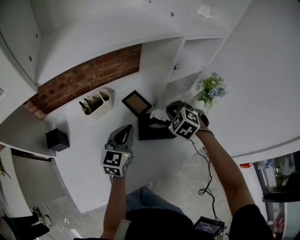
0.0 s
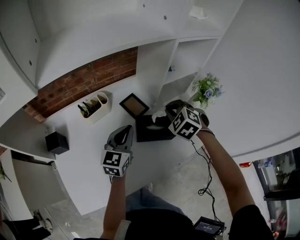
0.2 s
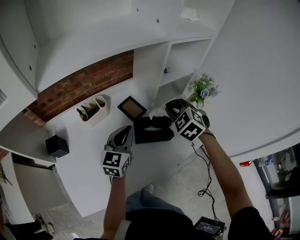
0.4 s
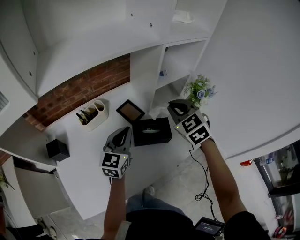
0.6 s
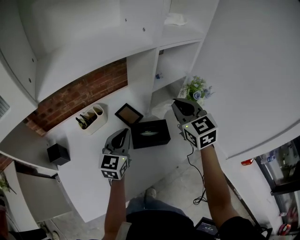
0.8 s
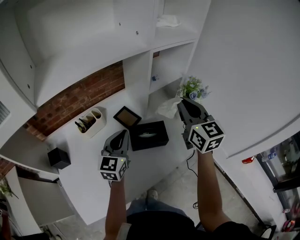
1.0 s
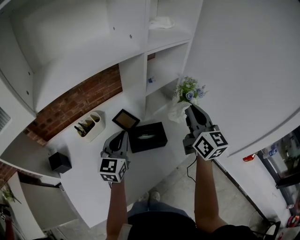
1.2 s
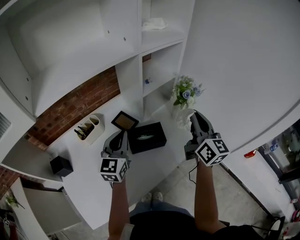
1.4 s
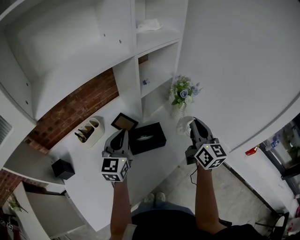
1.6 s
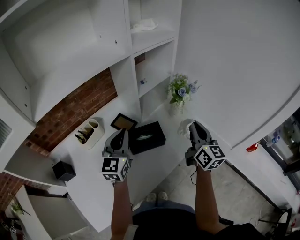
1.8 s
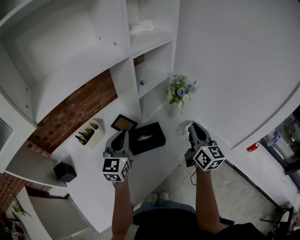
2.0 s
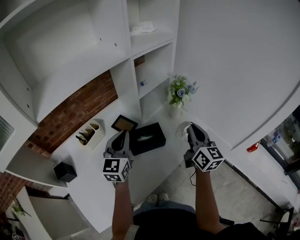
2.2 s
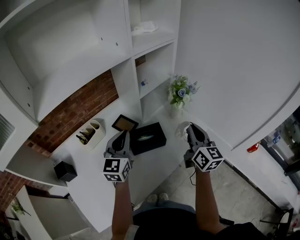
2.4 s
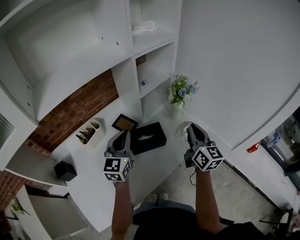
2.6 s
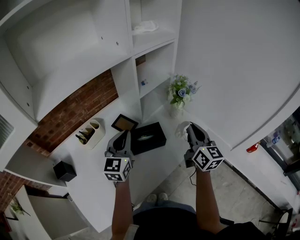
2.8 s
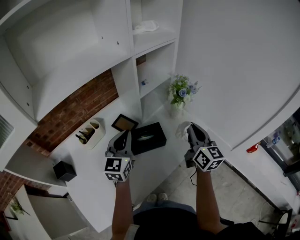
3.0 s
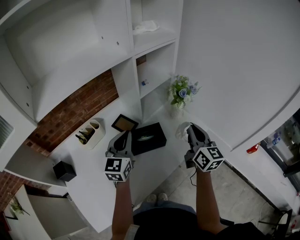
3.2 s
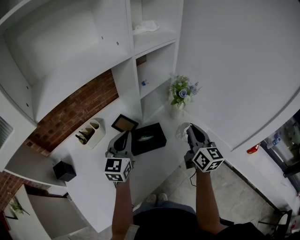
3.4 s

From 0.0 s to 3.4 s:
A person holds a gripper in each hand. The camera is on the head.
From 0.0 s to 1.6 s: The left gripper shifts some 10 cm upward and to the right. Meanwhile the right gripper is displaced to the right, upward and backward by about 25 cm, and points its fingers some 60 degrees further upward.
From 1.6 s to 3.4 s: The grippers make only small movements.

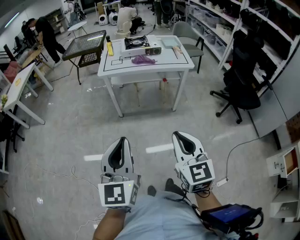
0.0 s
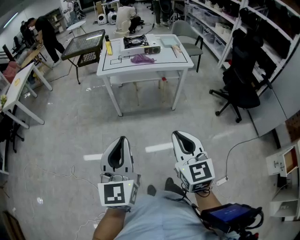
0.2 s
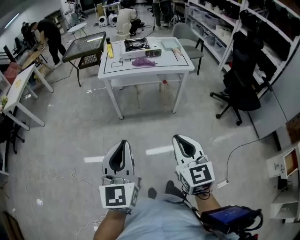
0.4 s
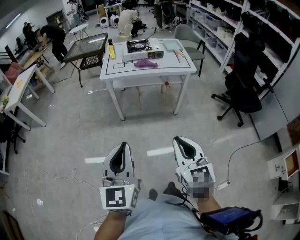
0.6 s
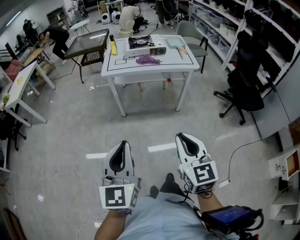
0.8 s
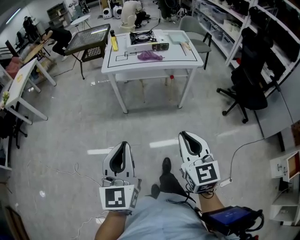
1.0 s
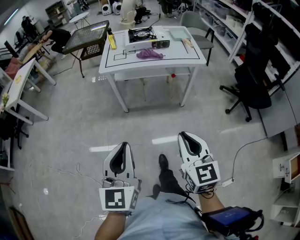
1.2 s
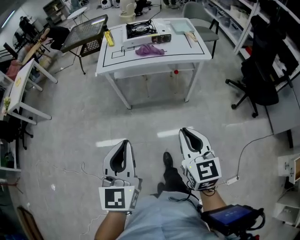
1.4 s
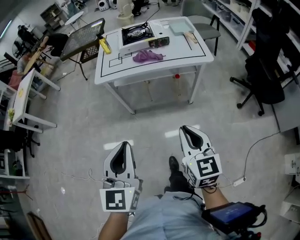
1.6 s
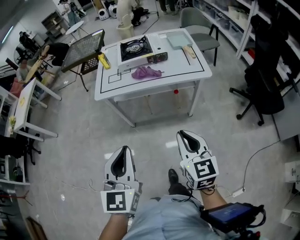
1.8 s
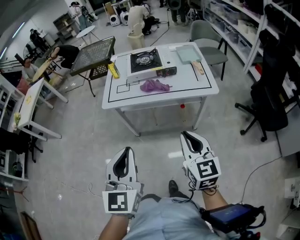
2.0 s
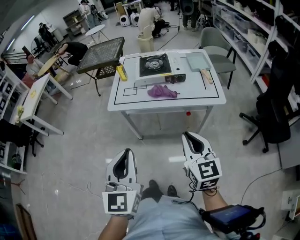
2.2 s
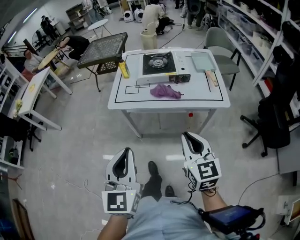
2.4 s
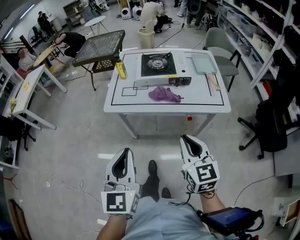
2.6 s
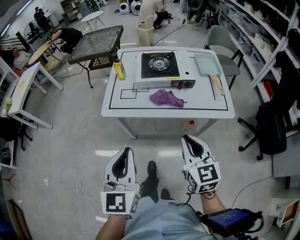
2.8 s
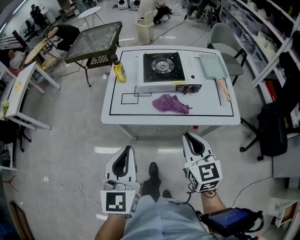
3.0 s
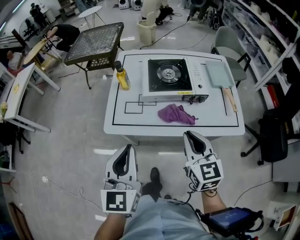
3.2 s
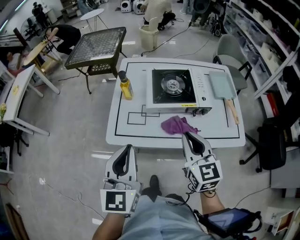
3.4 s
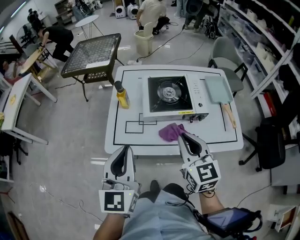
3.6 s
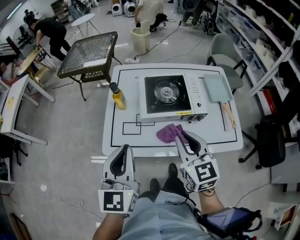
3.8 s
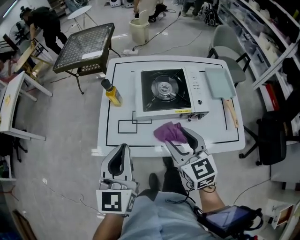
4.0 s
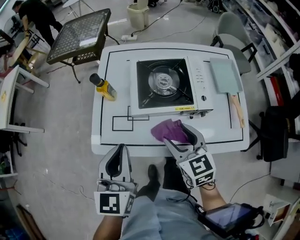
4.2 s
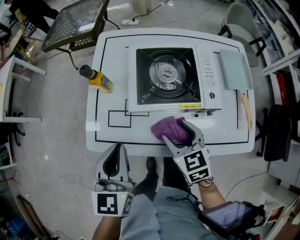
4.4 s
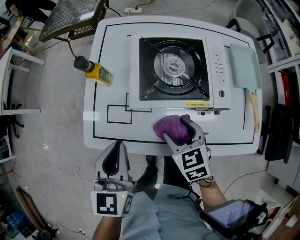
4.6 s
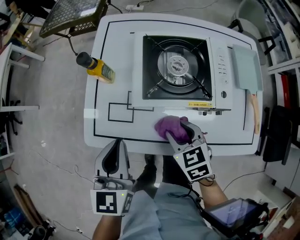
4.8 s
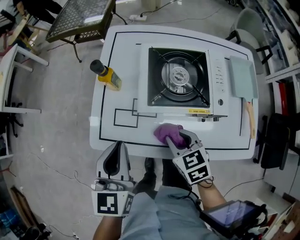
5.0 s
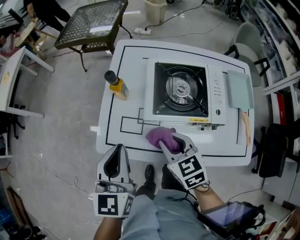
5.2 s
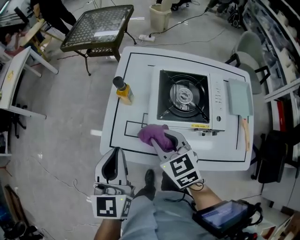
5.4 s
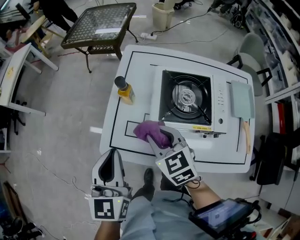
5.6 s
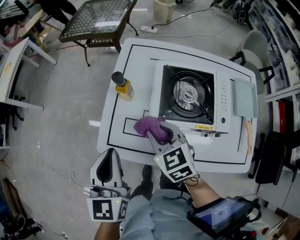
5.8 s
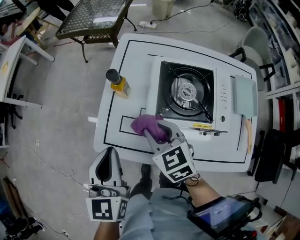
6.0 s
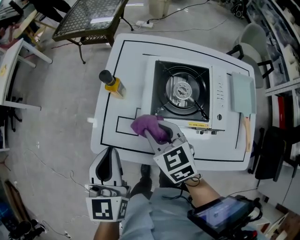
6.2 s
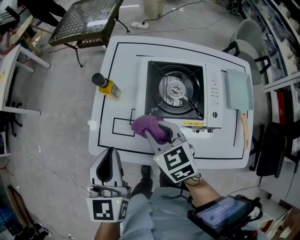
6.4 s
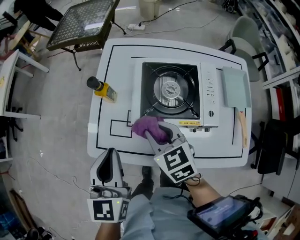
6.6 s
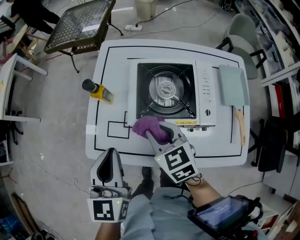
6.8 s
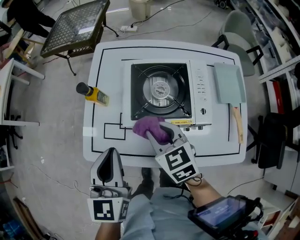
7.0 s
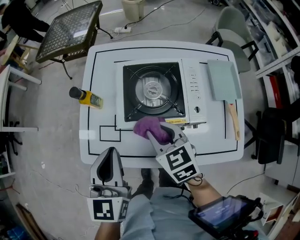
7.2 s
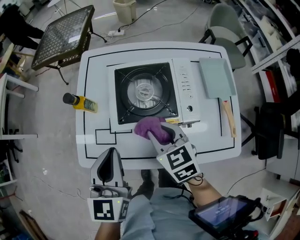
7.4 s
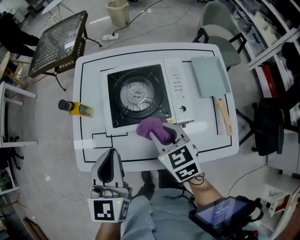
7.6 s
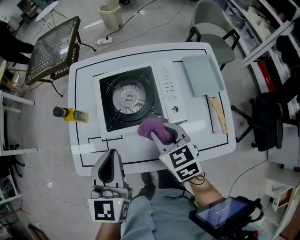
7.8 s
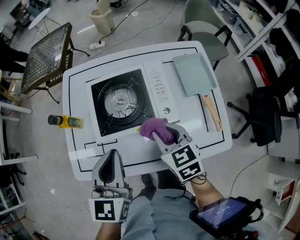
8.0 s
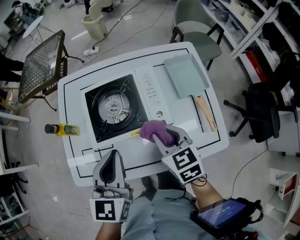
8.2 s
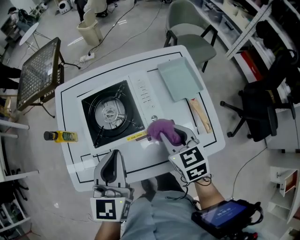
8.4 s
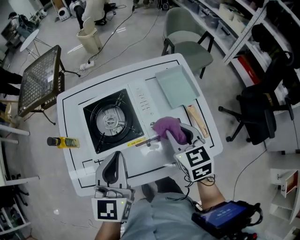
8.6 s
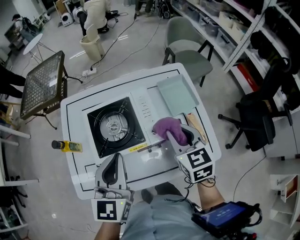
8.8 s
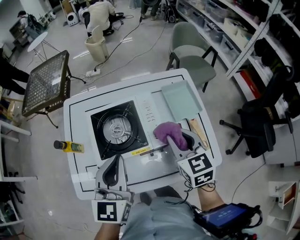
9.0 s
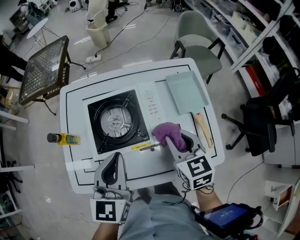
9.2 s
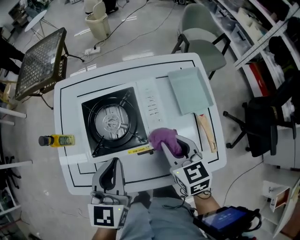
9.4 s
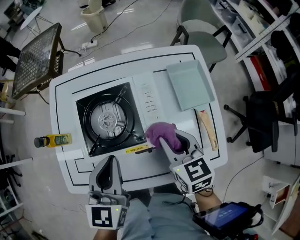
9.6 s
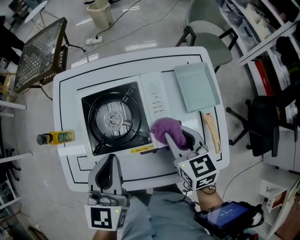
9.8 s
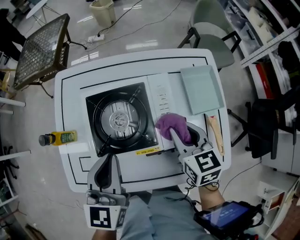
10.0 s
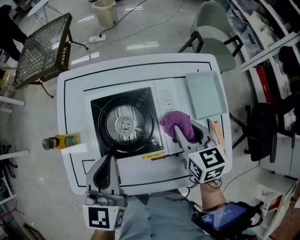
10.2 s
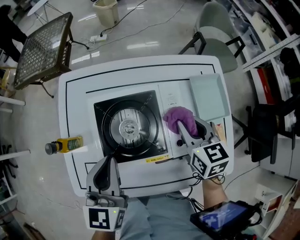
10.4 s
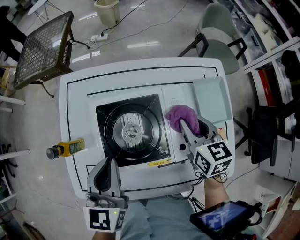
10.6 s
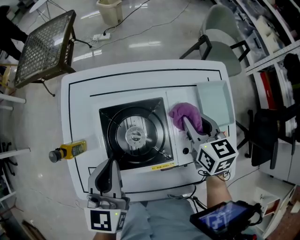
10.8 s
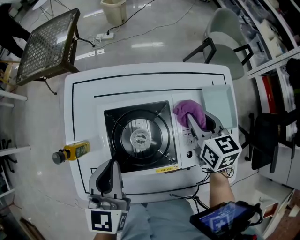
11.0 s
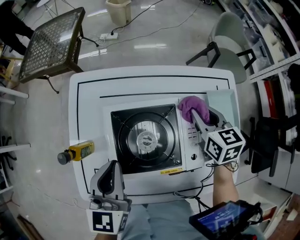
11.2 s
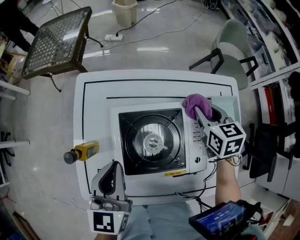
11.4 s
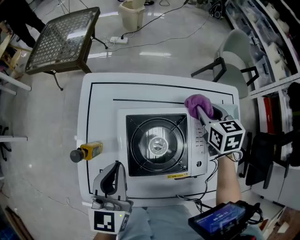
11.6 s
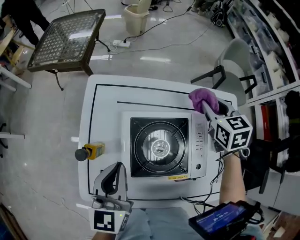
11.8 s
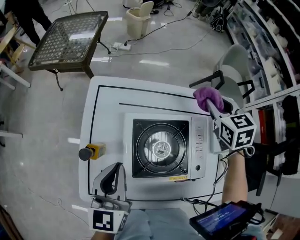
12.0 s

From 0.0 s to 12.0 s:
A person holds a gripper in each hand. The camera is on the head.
From 0.0 s to 1.6 s: Both grippers move forward, about 25 cm.
From 1.6 s to 3.0 s: The two grippers go some 35 cm forward.
From 3.0 s to 4.4 s: The left gripper shifts roughly 25 cm forward, while the right gripper shifts roughly 30 cm forward and downward, rotates about 20 degrees, and opens.
From 4.4 s to 6.0 s: The right gripper moves to the left, forward and upward, roughly 15 cm, and closes up; the left gripper travels to the left by about 5 cm.
From 6.0 s to 7.6 s: Both grippers move to the right, some 15 cm.
From 7.6 s to 9.0 s: The left gripper goes roughly 10 cm to the right and upward, while the right gripper travels to the right and upward by some 20 cm, and changes its angle by some 20 degrees.
From 9.0 s to 10.4 s: The right gripper moves forward and downward, roughly 15 cm. Meanwhile the left gripper shifts about 15 cm forward, to the left and downward.
From 10.4 s to 12.0 s: The right gripper is displaced forward and upward by about 20 cm, and changes its angle by approximately 20 degrees. Meanwhile the left gripper heads to the left, covering roughly 10 cm.

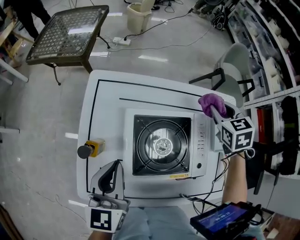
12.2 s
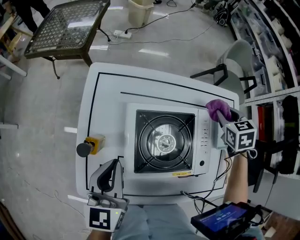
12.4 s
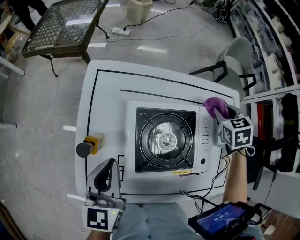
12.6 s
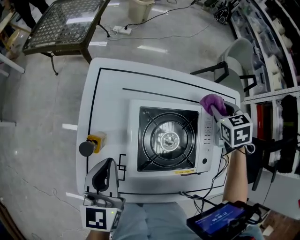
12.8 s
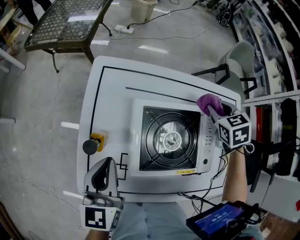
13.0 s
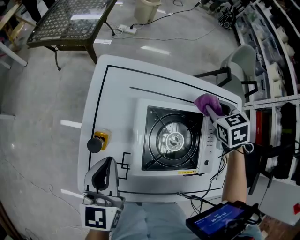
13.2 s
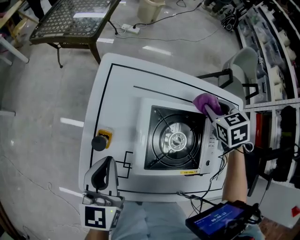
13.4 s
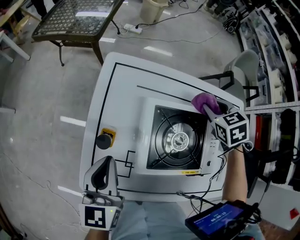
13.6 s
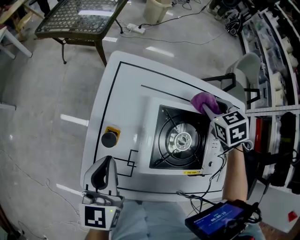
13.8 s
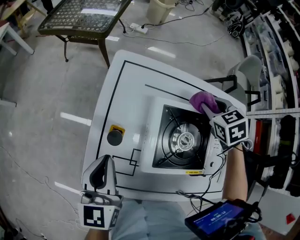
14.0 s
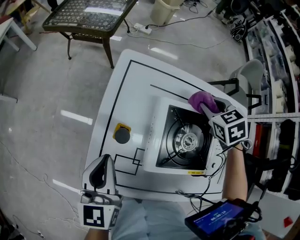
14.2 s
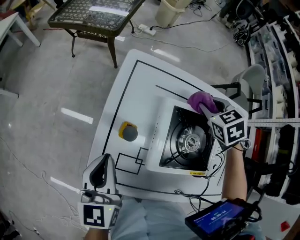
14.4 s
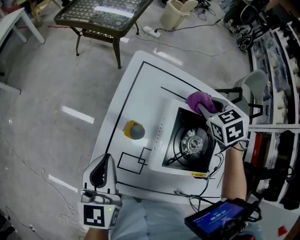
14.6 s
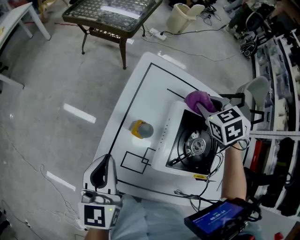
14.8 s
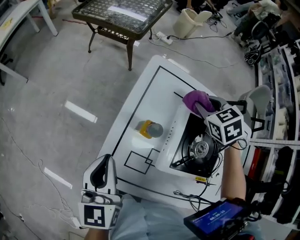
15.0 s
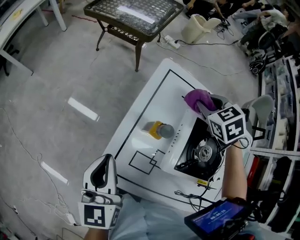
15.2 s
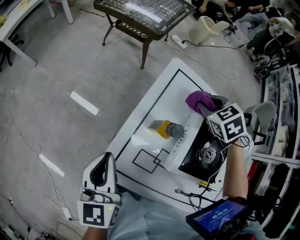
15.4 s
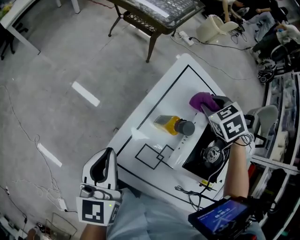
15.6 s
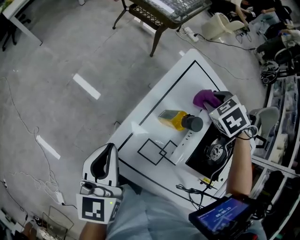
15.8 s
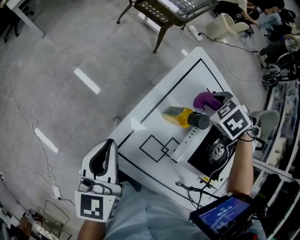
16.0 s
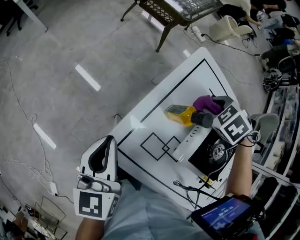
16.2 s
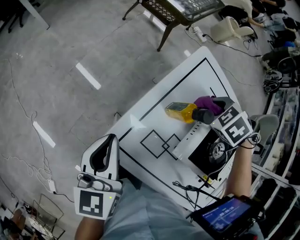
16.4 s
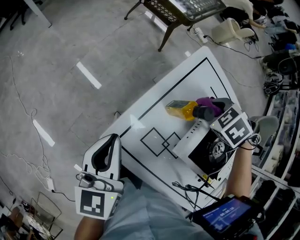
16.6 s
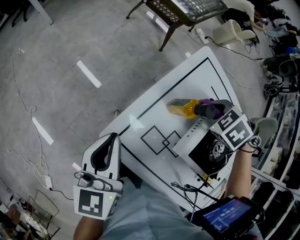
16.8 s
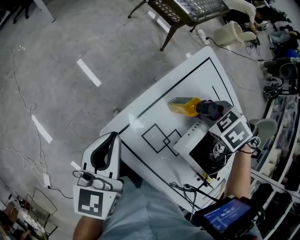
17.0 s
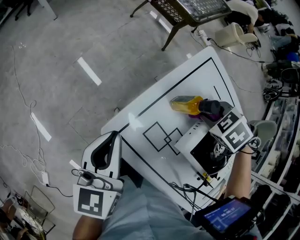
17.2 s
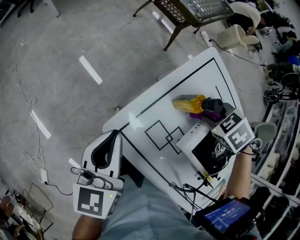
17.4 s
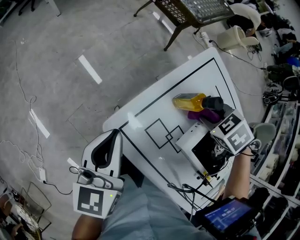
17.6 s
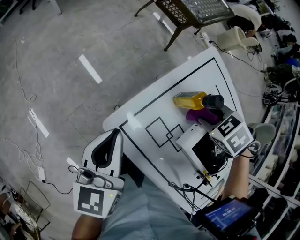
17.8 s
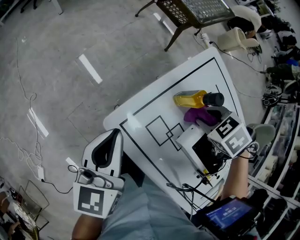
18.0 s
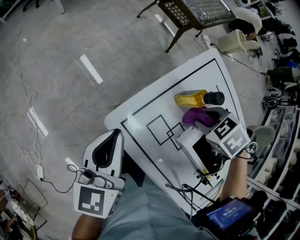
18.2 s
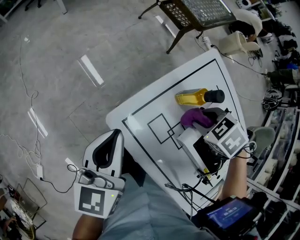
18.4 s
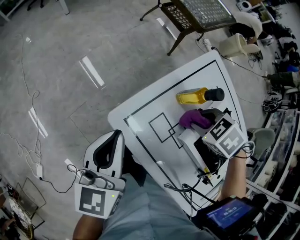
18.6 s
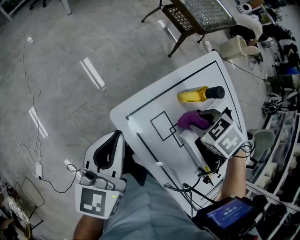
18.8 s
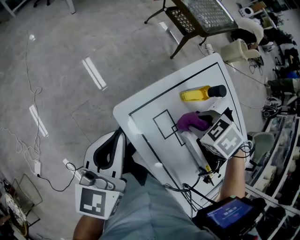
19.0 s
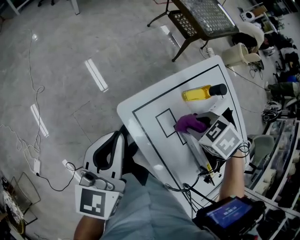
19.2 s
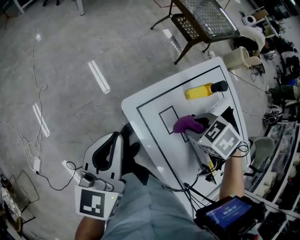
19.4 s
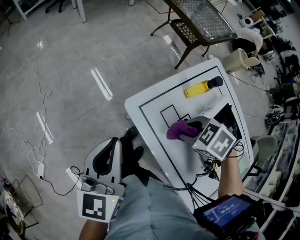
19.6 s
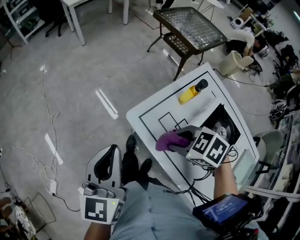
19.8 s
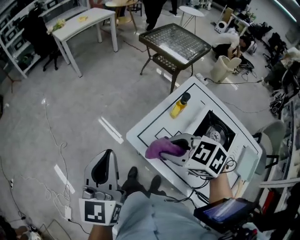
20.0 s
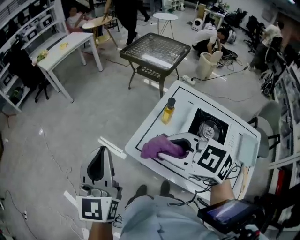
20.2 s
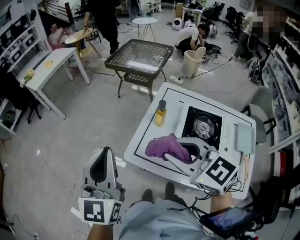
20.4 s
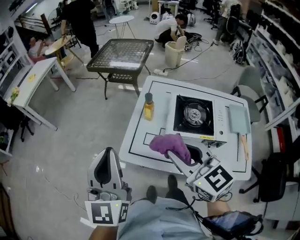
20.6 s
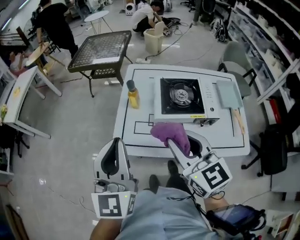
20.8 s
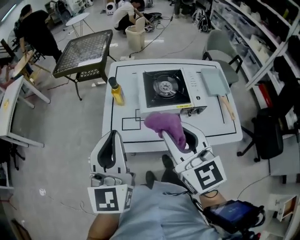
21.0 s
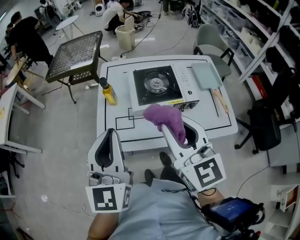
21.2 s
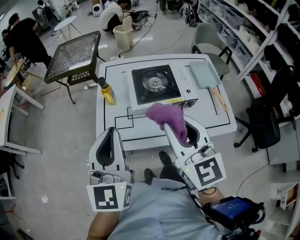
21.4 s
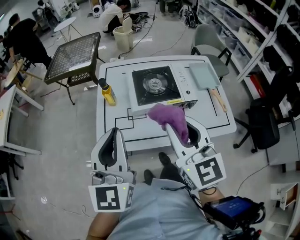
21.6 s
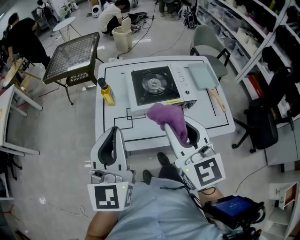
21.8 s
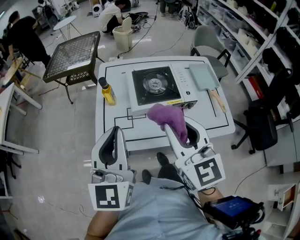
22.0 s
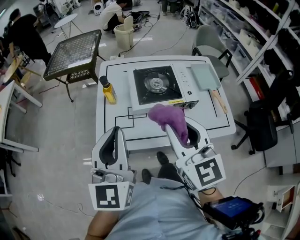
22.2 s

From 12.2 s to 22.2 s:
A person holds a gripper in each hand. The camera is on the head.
From 12.2 s to 13.6 s: The left gripper is displaced to the left by some 10 cm. The right gripper shifts approximately 10 cm to the left and downward.
From 13.6 s to 15.0 s: The left gripper goes about 10 cm to the left. The right gripper heads to the left, covering about 20 cm.
From 15.0 s to 16.4 s: The left gripper changes place by roughly 10 cm, while the right gripper ends up about 15 cm from where it was, and swivels roughly 40 degrees.
From 16.4 s to 18.0 s: The left gripper shifts by some 5 cm. Meanwhile the right gripper changes place by some 10 cm.
From 18.0 s to 19.4 s: The left gripper changes place by about 15 cm; the right gripper moves approximately 15 cm.
From 19.4 s to 20.8 s: The two grippers go about 20 cm upward. The right gripper tilts its fingers about 70 degrees upward. Meanwhile the left gripper turns by about 50 degrees.
From 20.8 s to 22.2 s: The left gripper moves to the right, approximately 5 cm. Meanwhile the right gripper ends up roughly 5 cm from where it was.
